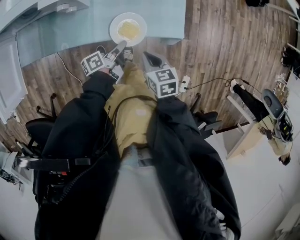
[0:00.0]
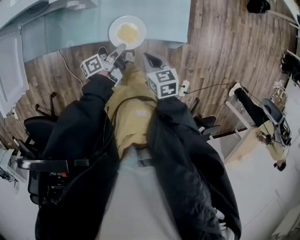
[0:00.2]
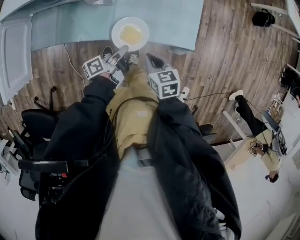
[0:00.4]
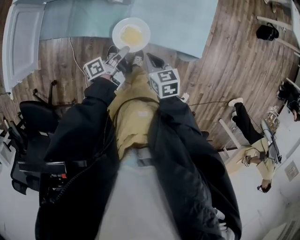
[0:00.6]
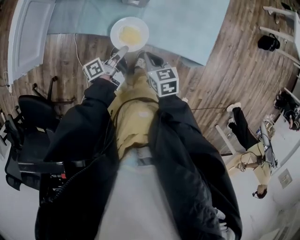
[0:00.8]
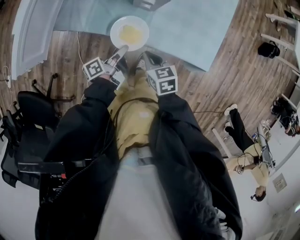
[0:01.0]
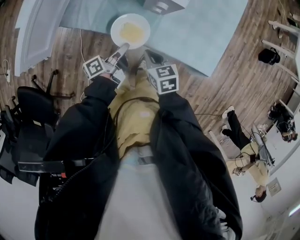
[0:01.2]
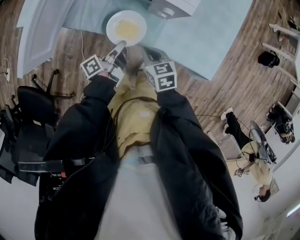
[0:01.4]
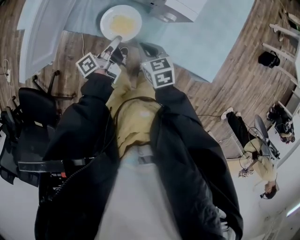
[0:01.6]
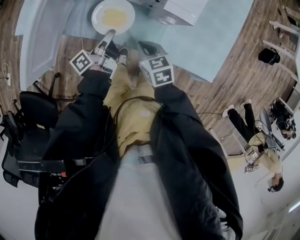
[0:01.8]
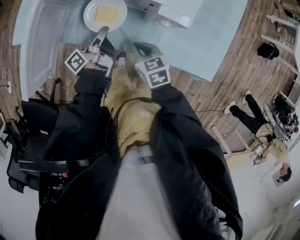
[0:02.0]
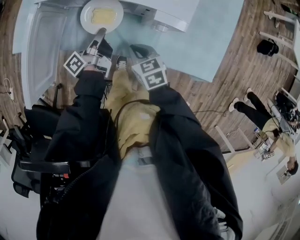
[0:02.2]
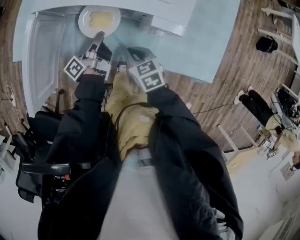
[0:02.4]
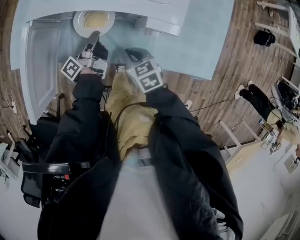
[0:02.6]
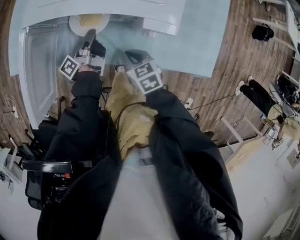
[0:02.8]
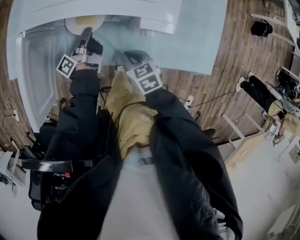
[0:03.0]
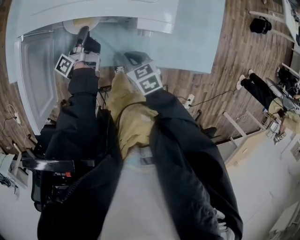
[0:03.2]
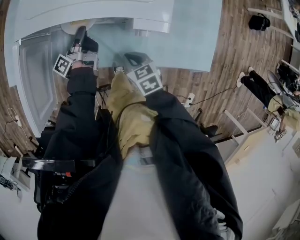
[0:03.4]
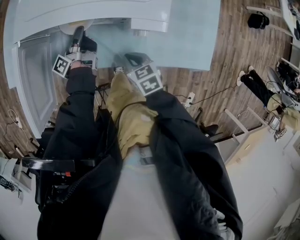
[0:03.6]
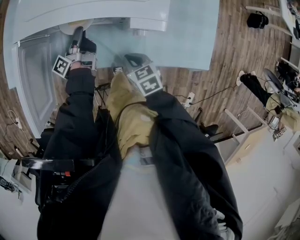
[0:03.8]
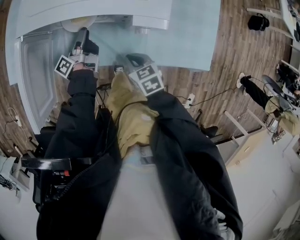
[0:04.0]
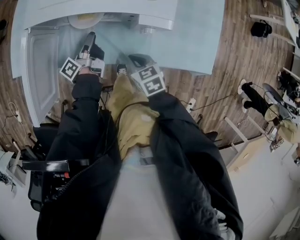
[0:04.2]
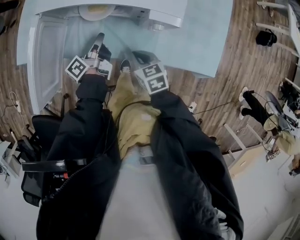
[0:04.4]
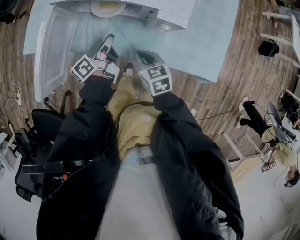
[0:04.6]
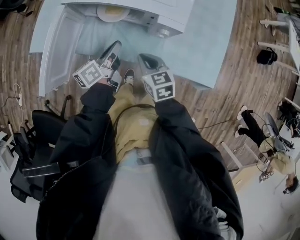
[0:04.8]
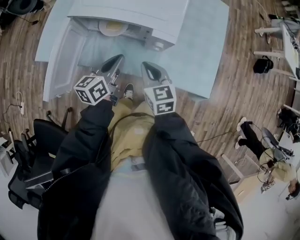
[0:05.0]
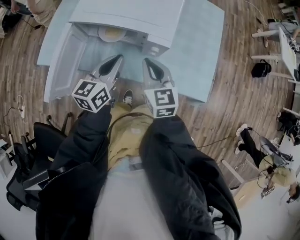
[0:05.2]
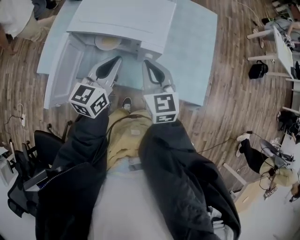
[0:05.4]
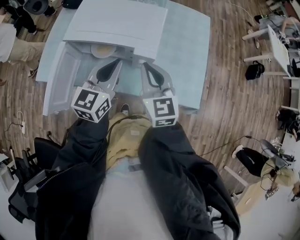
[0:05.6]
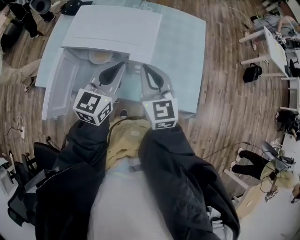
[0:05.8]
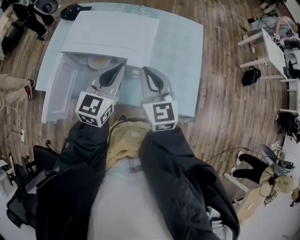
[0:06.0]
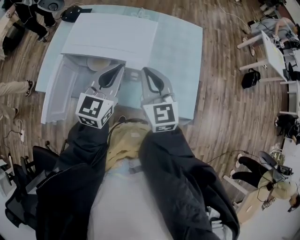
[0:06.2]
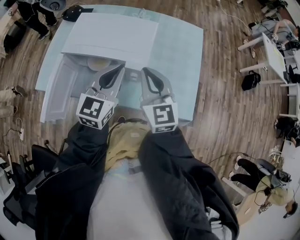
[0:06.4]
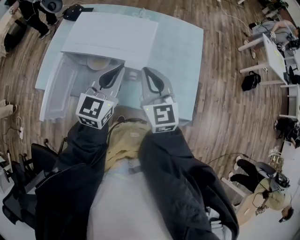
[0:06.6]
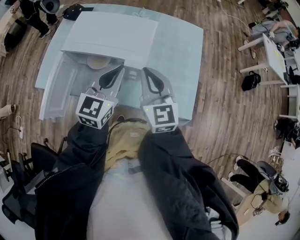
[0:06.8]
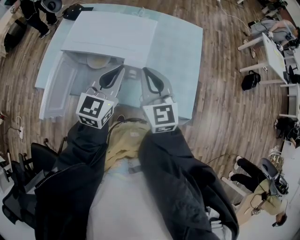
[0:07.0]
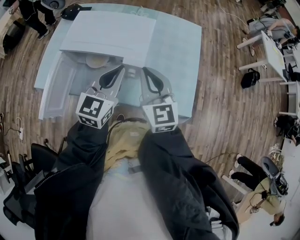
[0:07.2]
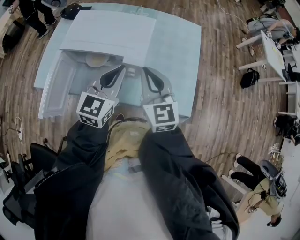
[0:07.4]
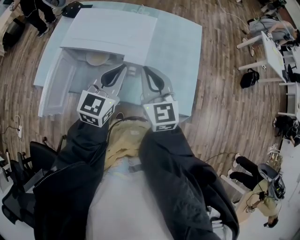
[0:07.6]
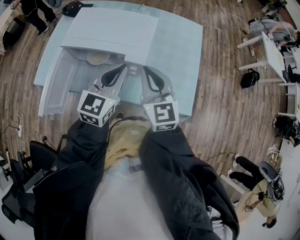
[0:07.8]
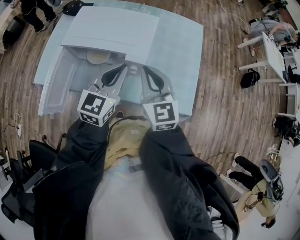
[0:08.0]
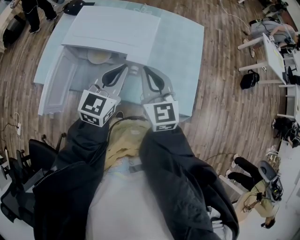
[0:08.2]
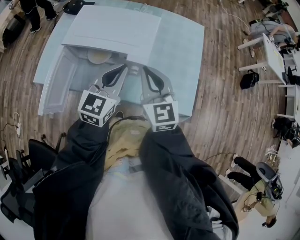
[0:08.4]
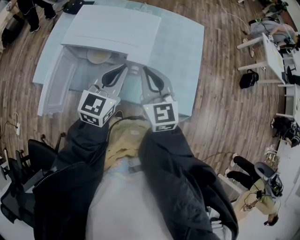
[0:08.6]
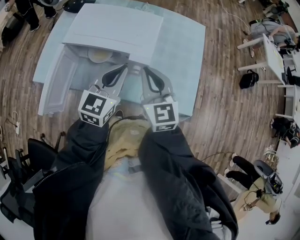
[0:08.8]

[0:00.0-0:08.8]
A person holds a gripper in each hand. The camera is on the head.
0:00.0 to 0:01.4: The right gripper ends up approximately 25 cm from where it was, and rotates about 30 degrees; the left gripper changes place by about 25 cm, and changes its angle by approximately 30 degrees.
0:01.4 to 0:03.0: The right gripper goes approximately 10 cm forward. Meanwhile the left gripper is displaced forward by approximately 20 cm.
0:03.0 to 0:04.4: The left gripper moves backward, about 5 cm, and opens, then closes once more.
0:04.4 to 0:05.8: The right gripper travels upward by roughly 30 cm, and points its fingers some 40 degrees further upward; the left gripper is displaced upward and to the right by some 35 cm, and twists approximately 80 degrees clockwise, seen from behind.
0:05.8 to 0:08.8: The grippers move only a little.

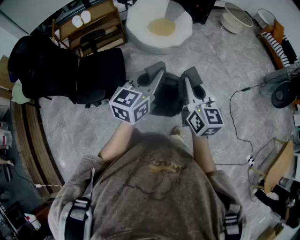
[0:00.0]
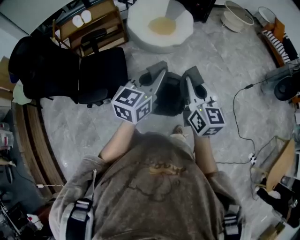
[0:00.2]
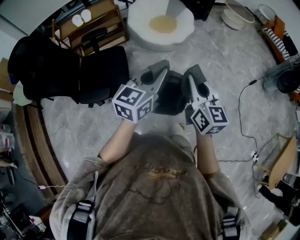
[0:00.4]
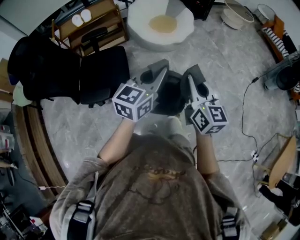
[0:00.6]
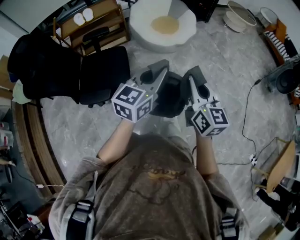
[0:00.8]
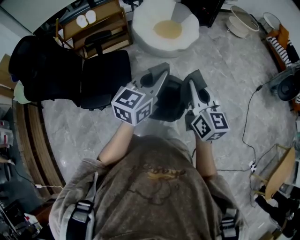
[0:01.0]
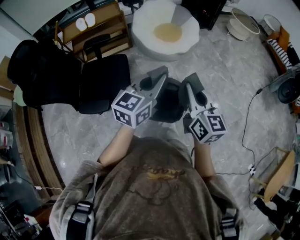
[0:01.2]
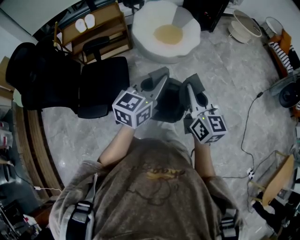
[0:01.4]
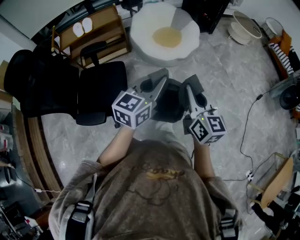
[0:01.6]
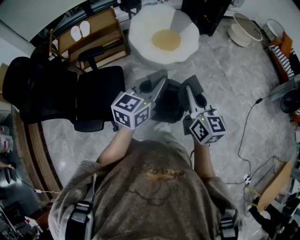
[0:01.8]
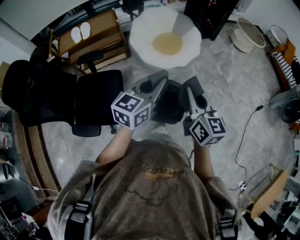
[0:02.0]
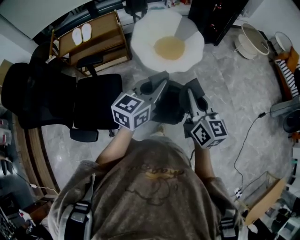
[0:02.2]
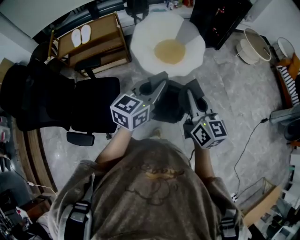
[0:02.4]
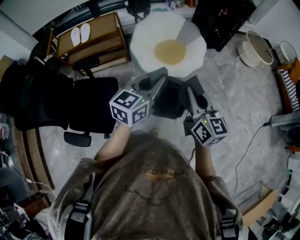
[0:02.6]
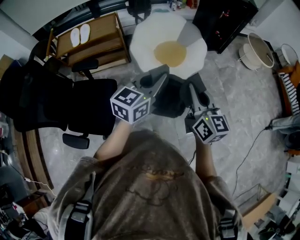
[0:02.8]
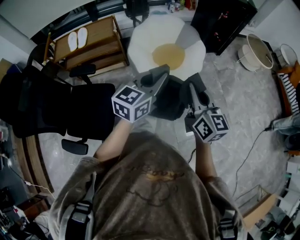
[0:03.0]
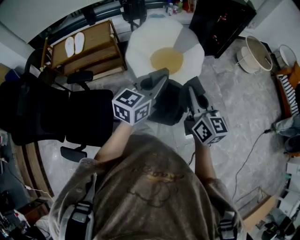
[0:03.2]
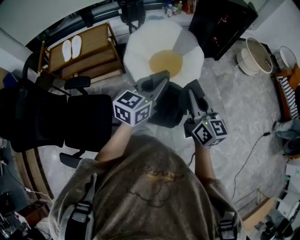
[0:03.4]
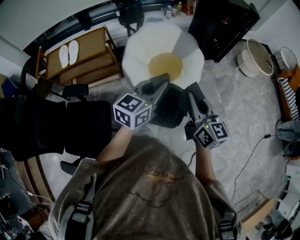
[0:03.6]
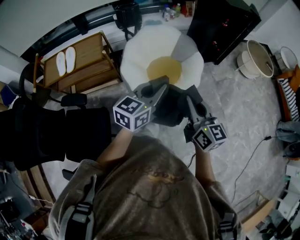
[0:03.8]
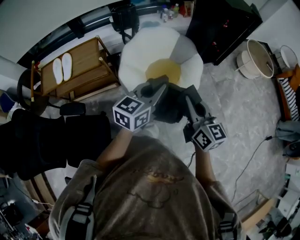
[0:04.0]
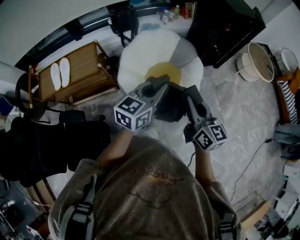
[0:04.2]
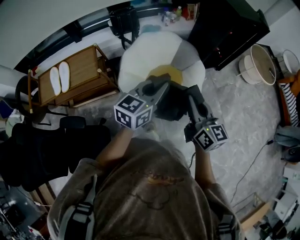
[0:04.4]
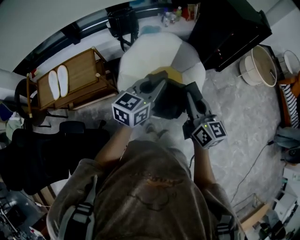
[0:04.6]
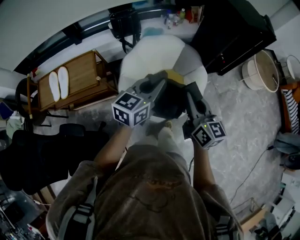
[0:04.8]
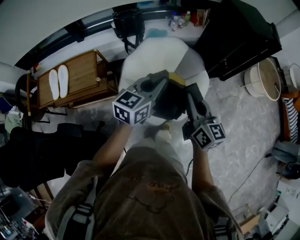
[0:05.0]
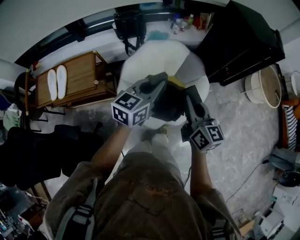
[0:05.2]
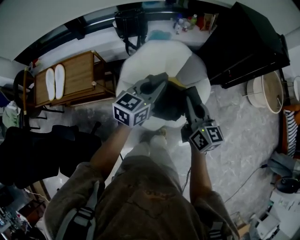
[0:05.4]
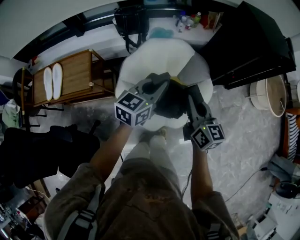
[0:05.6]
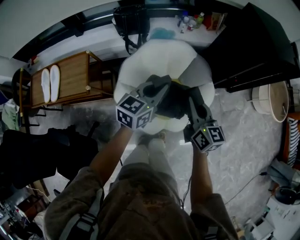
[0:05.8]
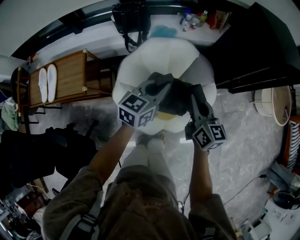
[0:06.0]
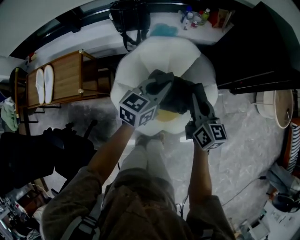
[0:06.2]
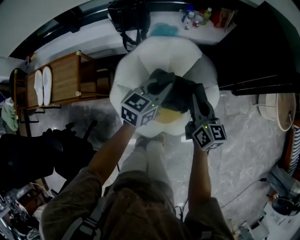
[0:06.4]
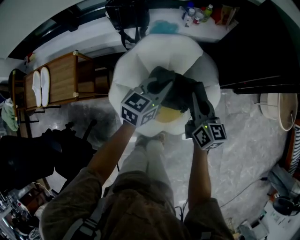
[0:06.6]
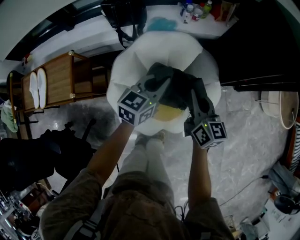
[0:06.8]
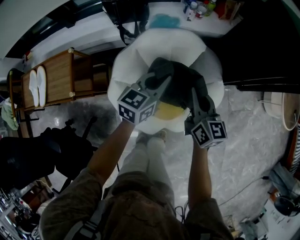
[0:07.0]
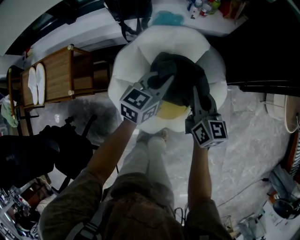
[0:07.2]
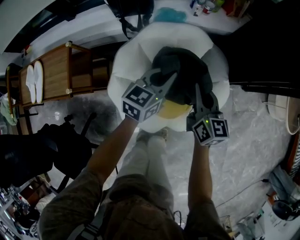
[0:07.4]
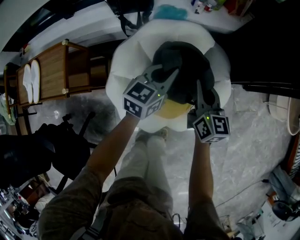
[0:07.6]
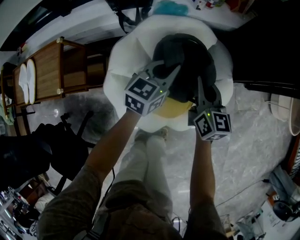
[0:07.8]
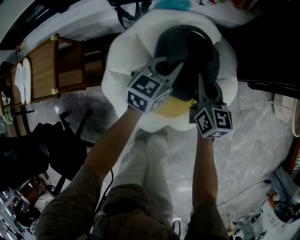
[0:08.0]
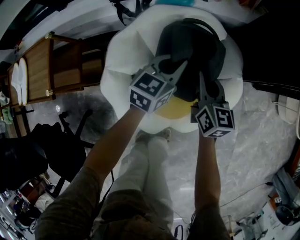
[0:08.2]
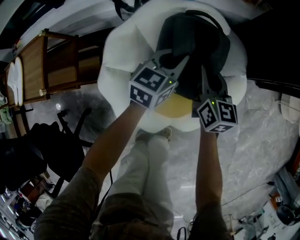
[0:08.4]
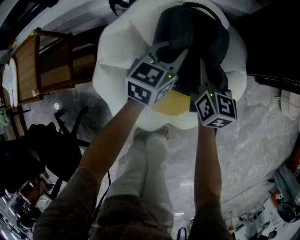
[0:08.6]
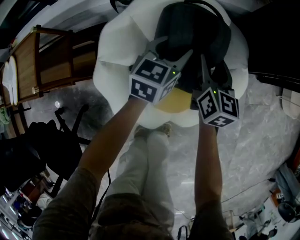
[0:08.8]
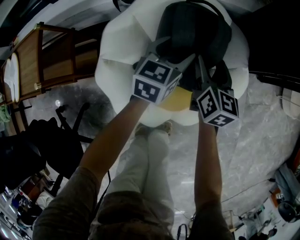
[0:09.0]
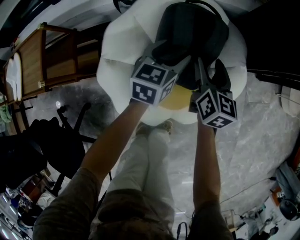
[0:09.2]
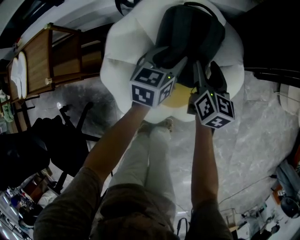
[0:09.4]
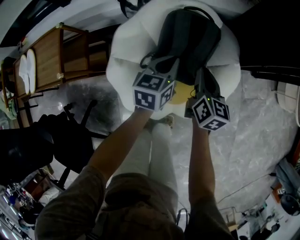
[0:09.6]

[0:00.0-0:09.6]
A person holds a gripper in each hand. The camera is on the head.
0:00.0 to 0:01.6: Both grippers travel together forward, some 15 cm.
0:01.6 to 0:03.2: Both grippers move forward, some 35 cm.
0:03.2 to 0:04.8: The grippers both shift forward by approximately 40 cm.
0:04.8 to 0:06.4: The grippers both shift forward and downward by about 30 cm.
0:06.4 to 0:08.0: The grippers both shift downward and forward by about 15 cm.
0:08.0 to 0:09.6: Both grippers travel together backward, some 5 cm. The right gripper opens, then closes again; the left gripper opens and closes again.

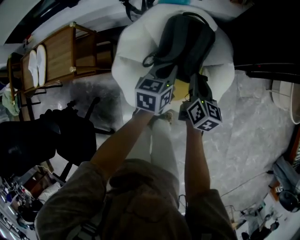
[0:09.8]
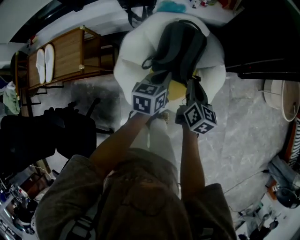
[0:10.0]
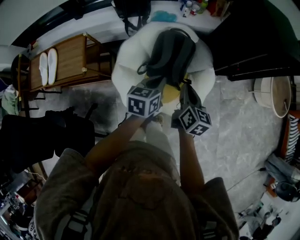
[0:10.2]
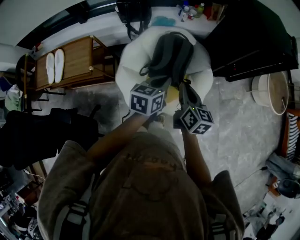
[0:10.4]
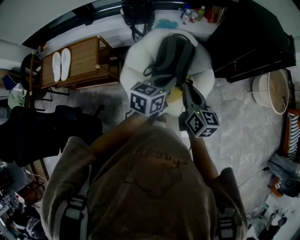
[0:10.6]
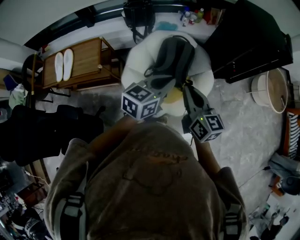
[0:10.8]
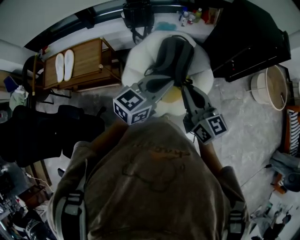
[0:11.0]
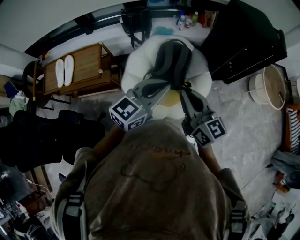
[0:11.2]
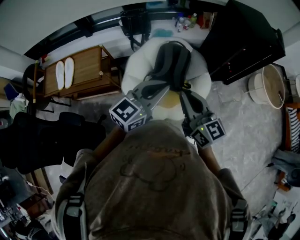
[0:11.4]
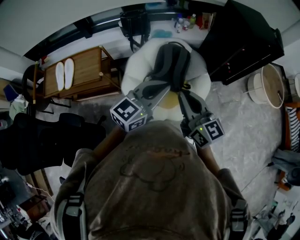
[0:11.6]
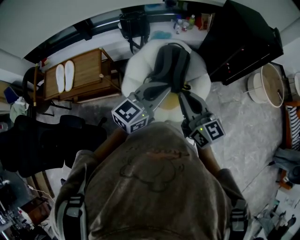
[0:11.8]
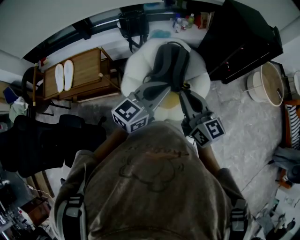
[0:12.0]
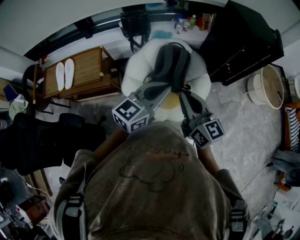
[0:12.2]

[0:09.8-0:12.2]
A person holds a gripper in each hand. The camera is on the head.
0:09.8 to 0:11.0: The two grippers go approximately 40 cm upward and backward. The right gripper swivels roughly 30 degrees. The left gripper turns by approximately 40 degrees.
0:11.0 to 0:12.2: The grippers make only small movements.

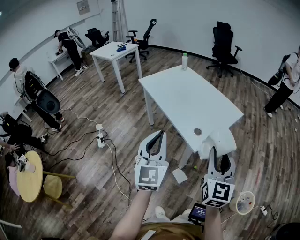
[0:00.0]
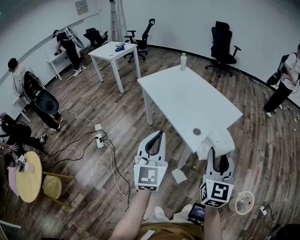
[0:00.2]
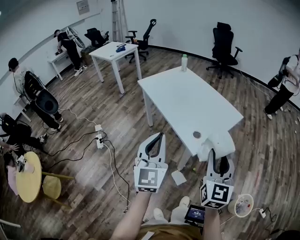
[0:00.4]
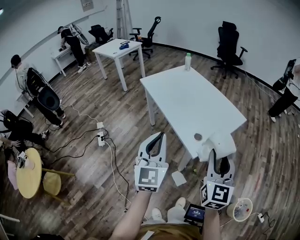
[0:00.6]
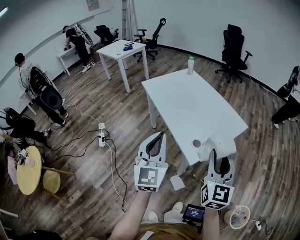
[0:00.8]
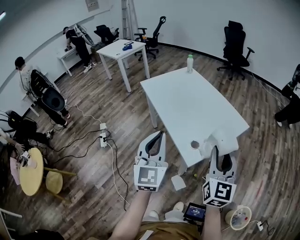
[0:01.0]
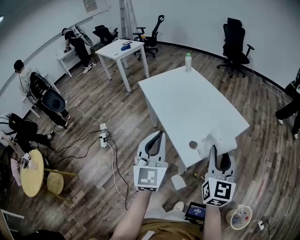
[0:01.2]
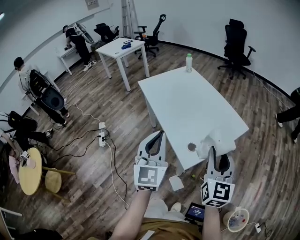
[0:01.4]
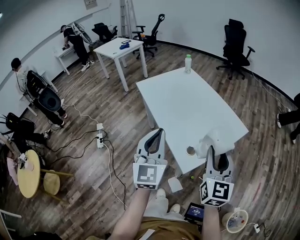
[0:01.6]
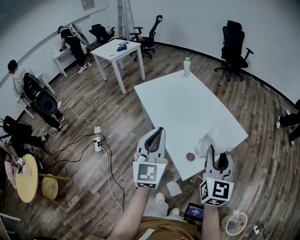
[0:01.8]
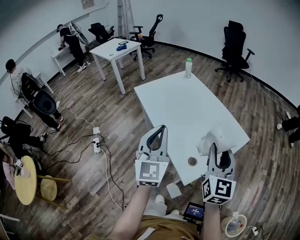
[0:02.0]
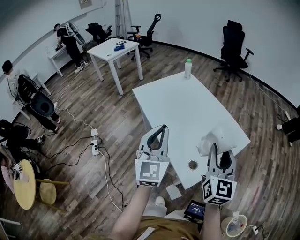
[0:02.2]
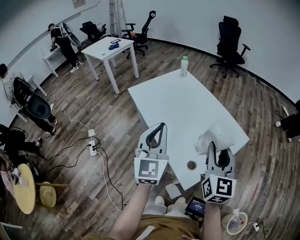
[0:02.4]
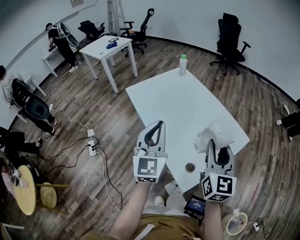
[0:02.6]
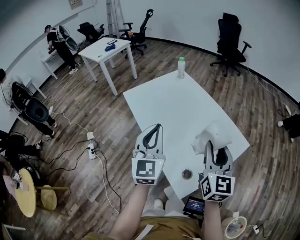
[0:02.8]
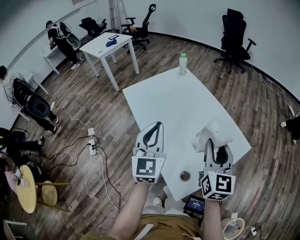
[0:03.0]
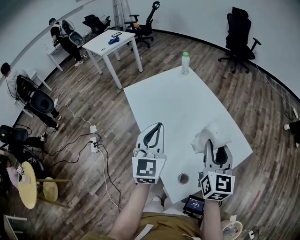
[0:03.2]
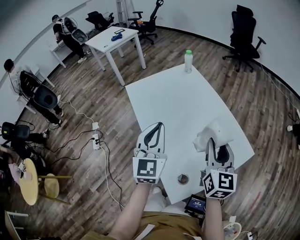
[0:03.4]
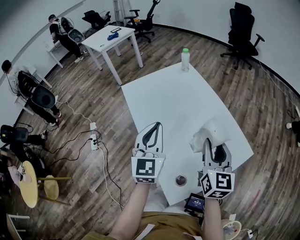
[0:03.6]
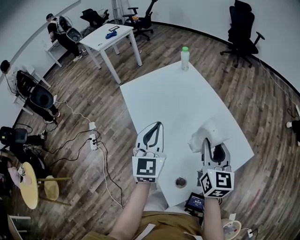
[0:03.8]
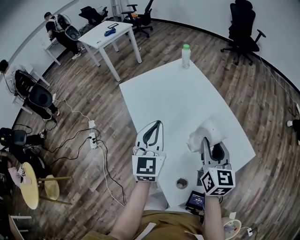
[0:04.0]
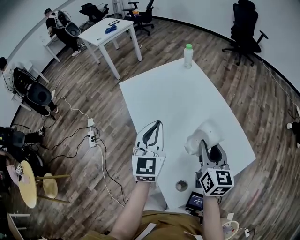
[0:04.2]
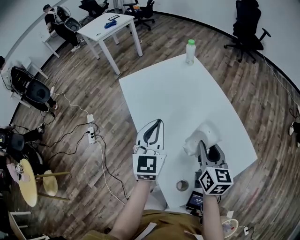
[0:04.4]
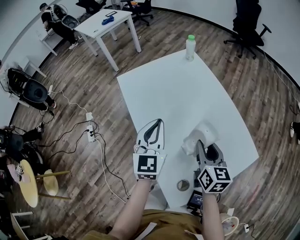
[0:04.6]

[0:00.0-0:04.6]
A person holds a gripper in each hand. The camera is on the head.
0:00.0 to 0:01.6: Both grippers travel together forward, approximately 15 cm.
0:01.6 to 0:03.0: The grippers both shift forward by some 20 cm.
0:03.0 to 0:04.6: The right gripper moves downward and forward, roughly 20 cm, and rotates some 30 degrees, while the left gripper shifts about 15 cm forward and downward.
